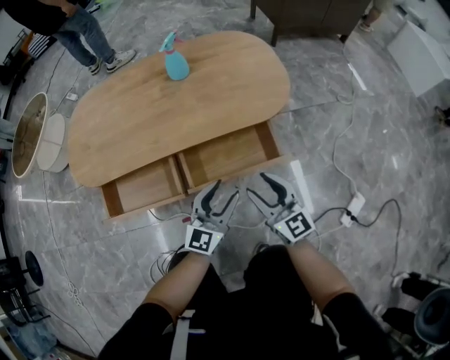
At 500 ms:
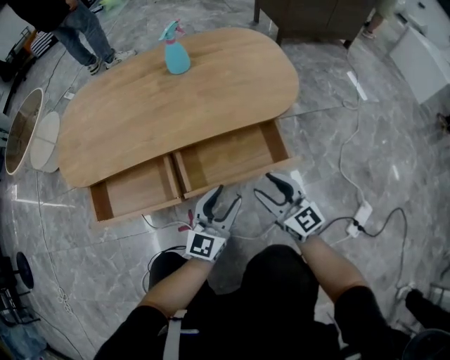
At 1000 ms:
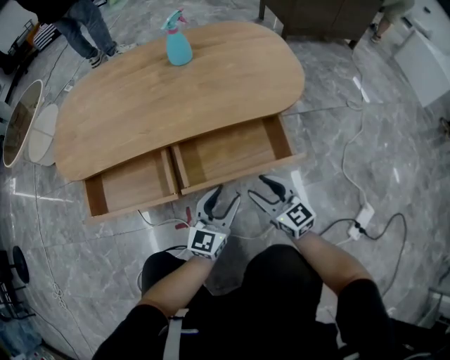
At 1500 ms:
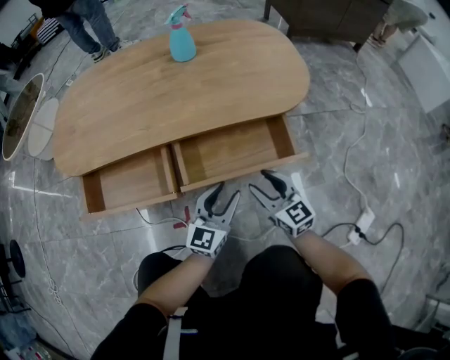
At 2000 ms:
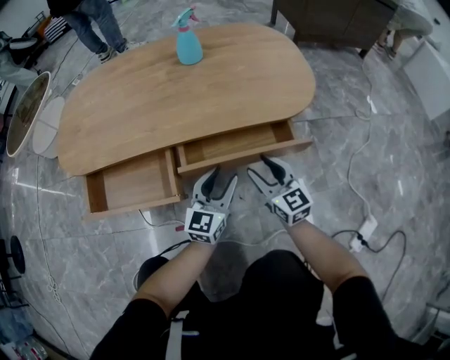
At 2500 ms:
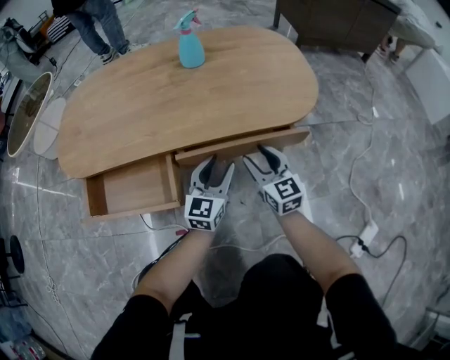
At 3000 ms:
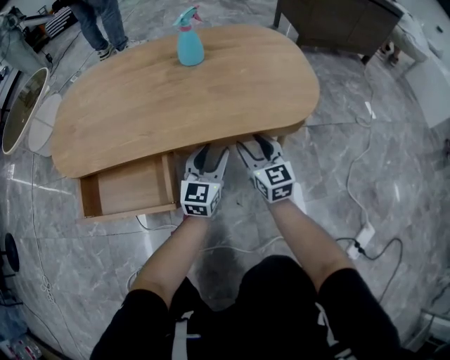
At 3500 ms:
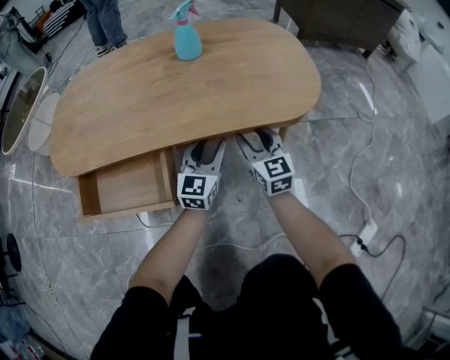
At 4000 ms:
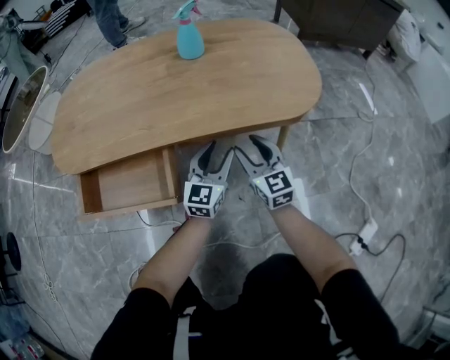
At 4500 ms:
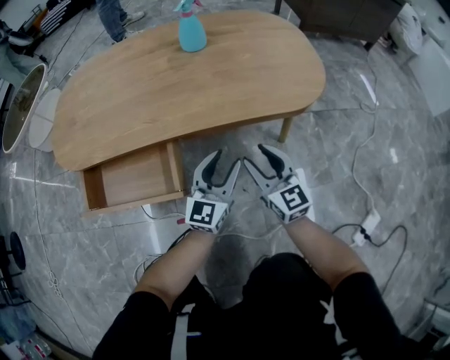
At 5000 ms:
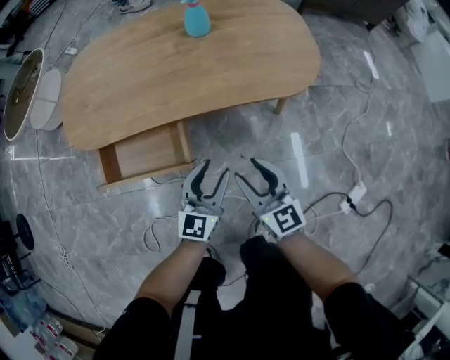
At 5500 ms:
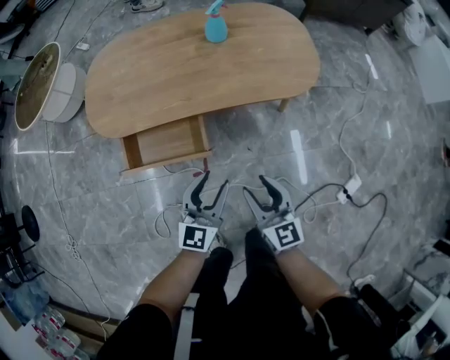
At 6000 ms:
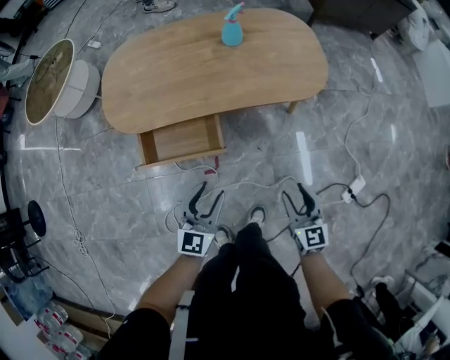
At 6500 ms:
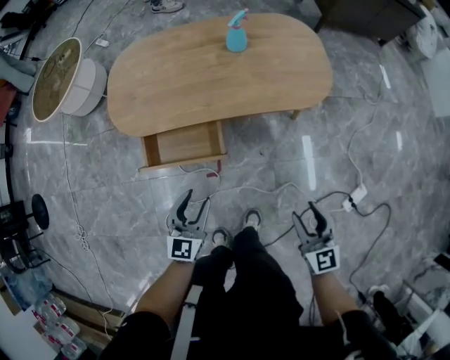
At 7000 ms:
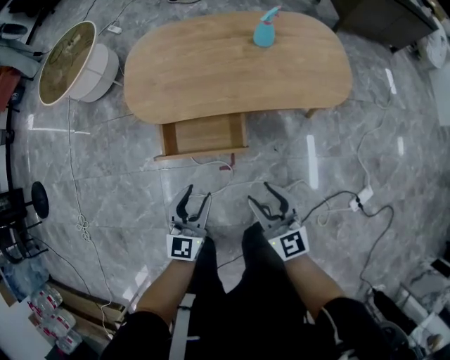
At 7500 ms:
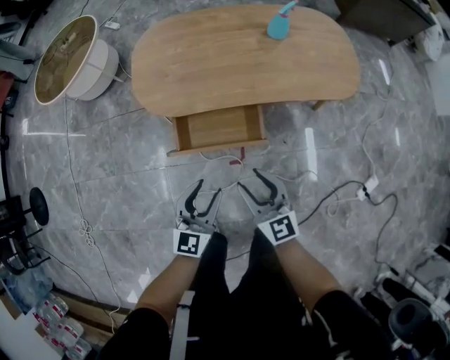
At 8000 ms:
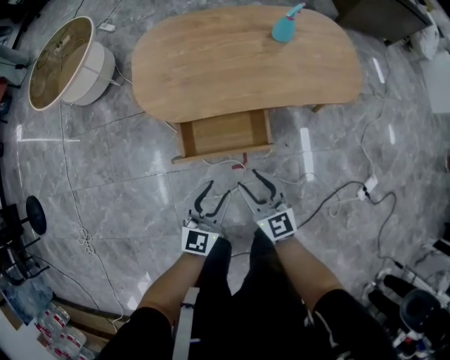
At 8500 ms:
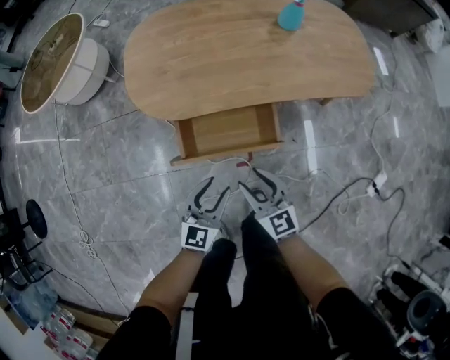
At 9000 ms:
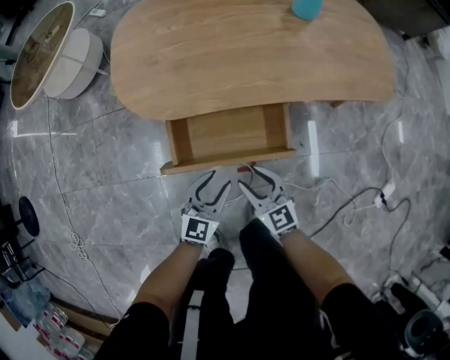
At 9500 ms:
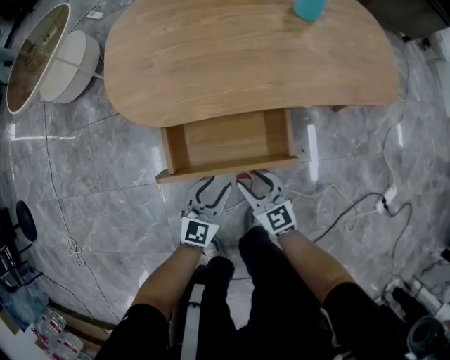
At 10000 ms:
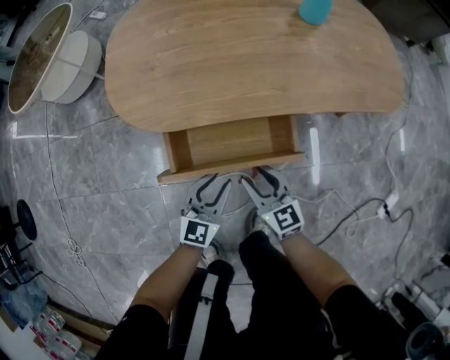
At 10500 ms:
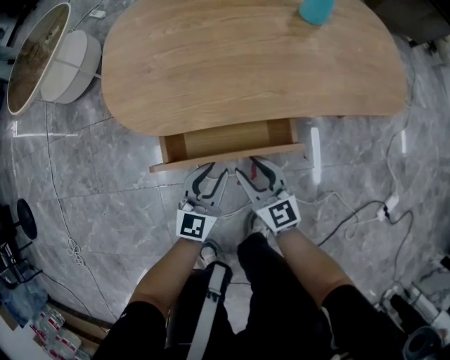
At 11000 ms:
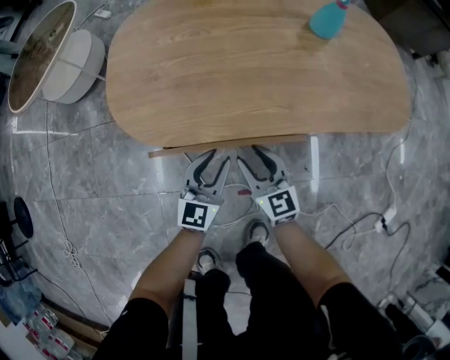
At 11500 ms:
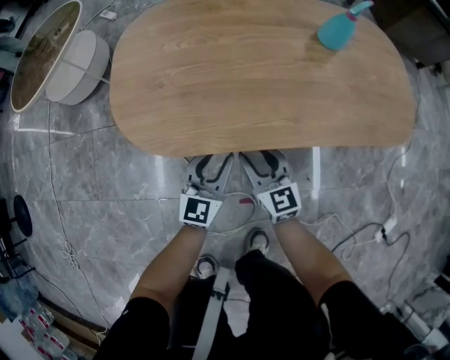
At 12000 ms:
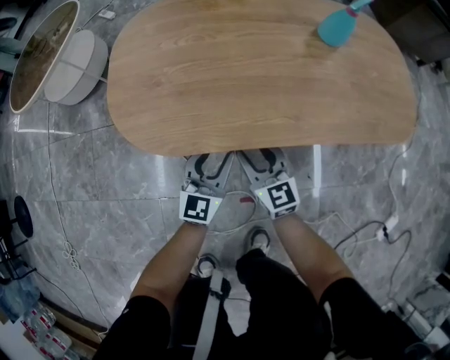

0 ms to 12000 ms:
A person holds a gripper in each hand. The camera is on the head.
0 ms to 2000 ms: The two grippers go some 15 cm downward and forward.
2000 ms to 4000 ms: The grippers both shift forward by about 10 cm.
4000 ms to 6000 ms: The right gripper heads backward and upward, covering approximately 35 cm, while the left gripper shifts some 40 cm backward, upward and to the left.
6000 ms to 8000 ms: The right gripper goes about 30 cm to the left. Meanwhile the left gripper goes some 15 cm to the left.
8000 ms to 10000 ms: The right gripper travels downward by approximately 20 cm. The left gripper travels downward and forward by some 20 cm.
10000 ms to 12000 ms: Both grippers move forward, approximately 15 cm.

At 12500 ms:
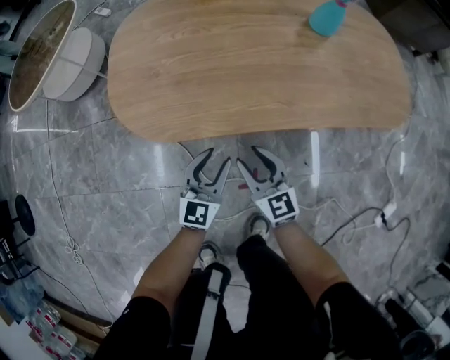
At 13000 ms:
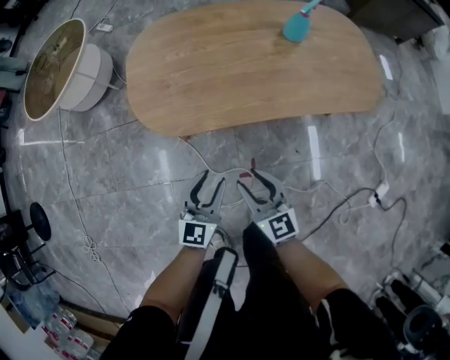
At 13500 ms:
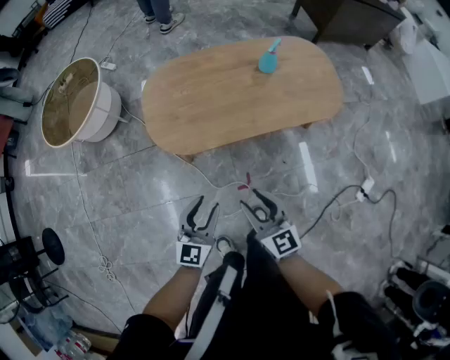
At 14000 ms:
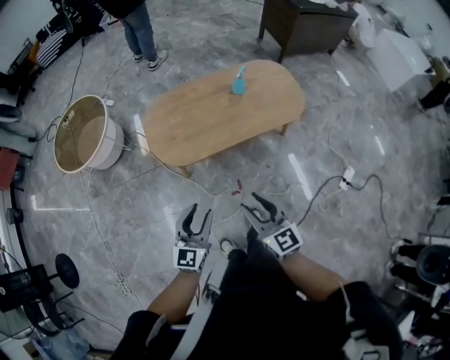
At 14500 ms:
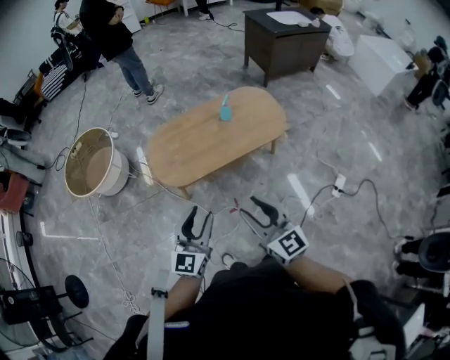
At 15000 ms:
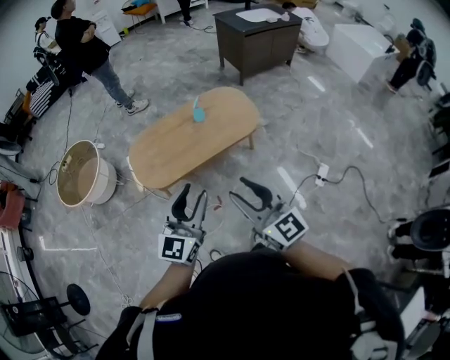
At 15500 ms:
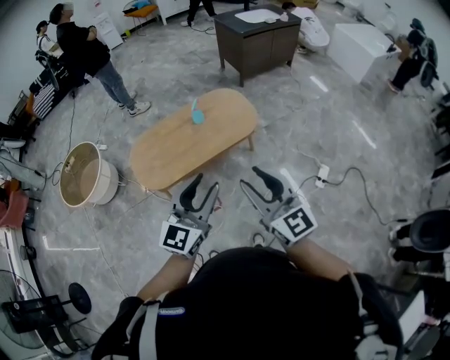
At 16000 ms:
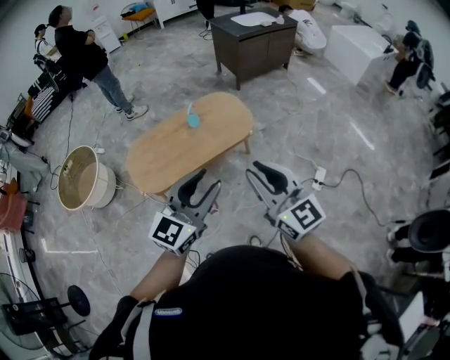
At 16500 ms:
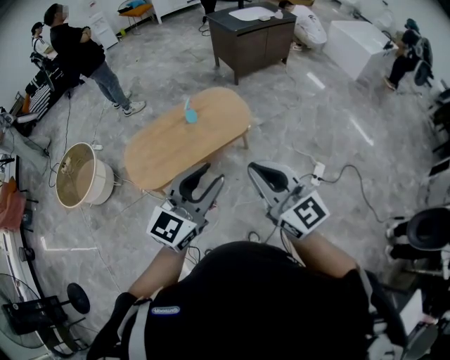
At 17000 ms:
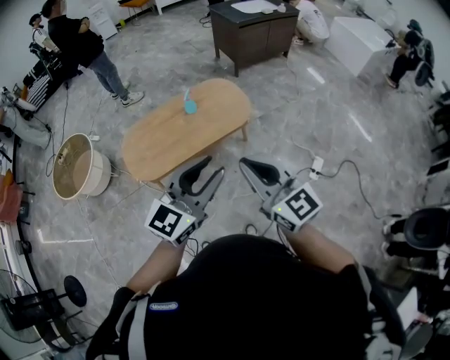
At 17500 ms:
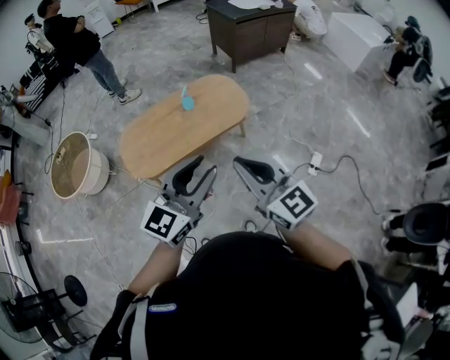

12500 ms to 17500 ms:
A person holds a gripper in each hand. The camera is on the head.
12500 ms to 15000 ms: The two grippers go some 70 cm upward. The right gripper turns by some 30 degrees. Meanwhile the left gripper swivels about 30 degrees.
15000 ms to 17500 ms: The right gripper heads to the right, covering roughly 5 cm, and closes up, while the left gripper moves to the right and upward, roughly 15 cm.

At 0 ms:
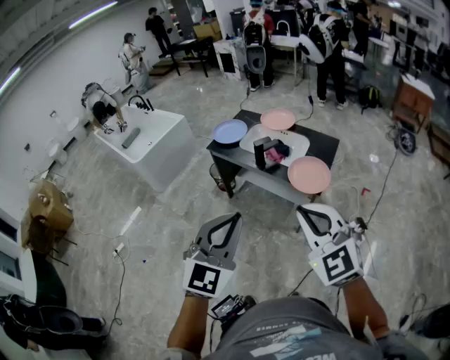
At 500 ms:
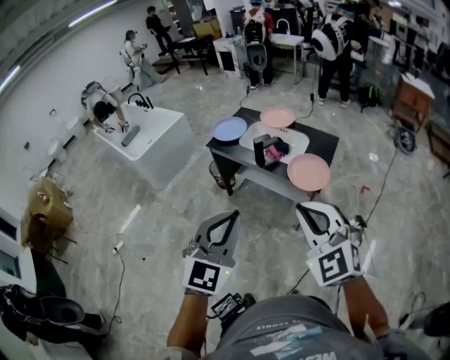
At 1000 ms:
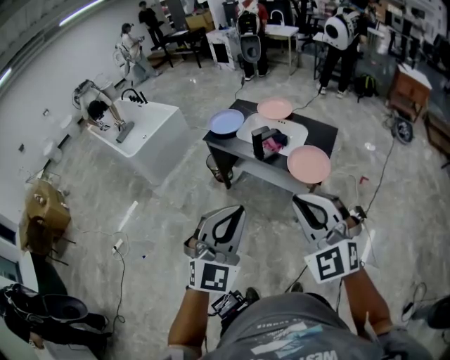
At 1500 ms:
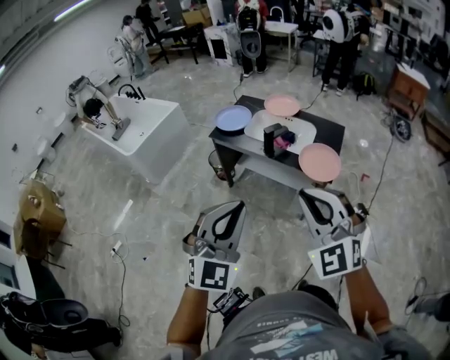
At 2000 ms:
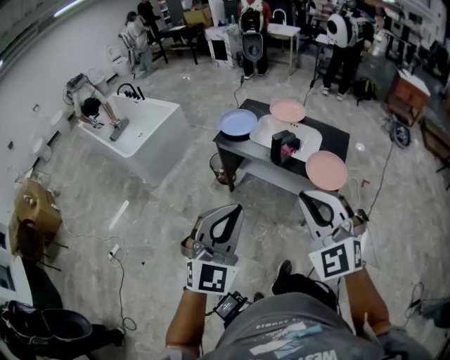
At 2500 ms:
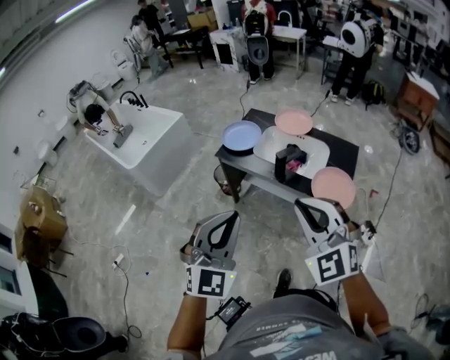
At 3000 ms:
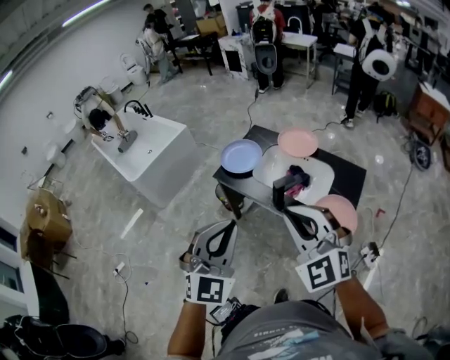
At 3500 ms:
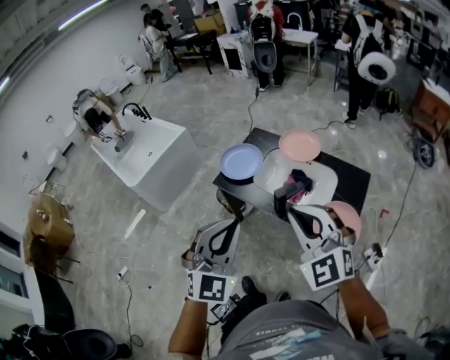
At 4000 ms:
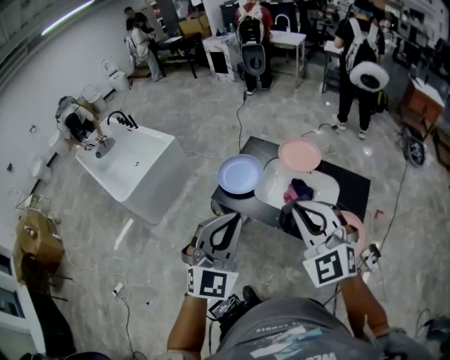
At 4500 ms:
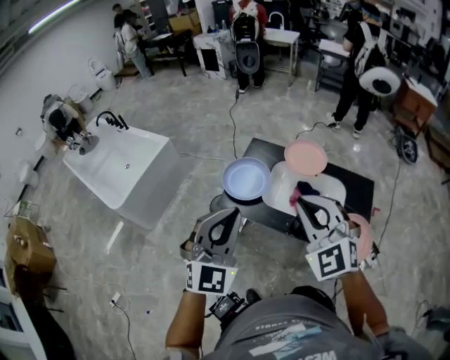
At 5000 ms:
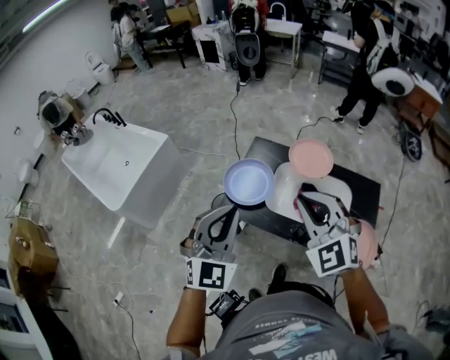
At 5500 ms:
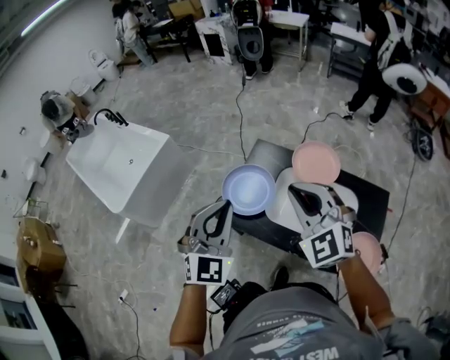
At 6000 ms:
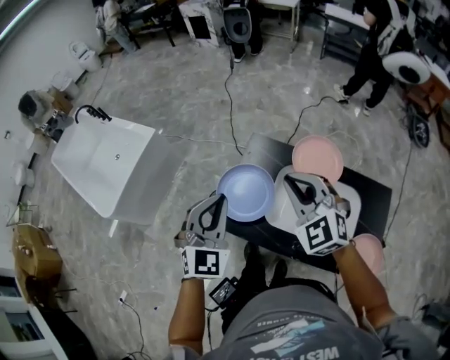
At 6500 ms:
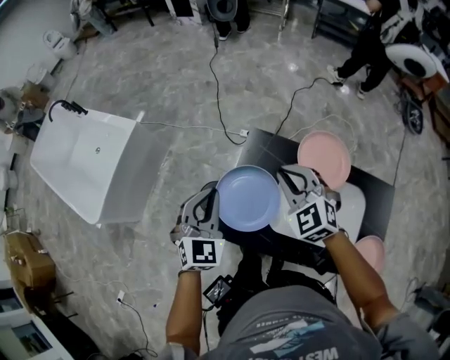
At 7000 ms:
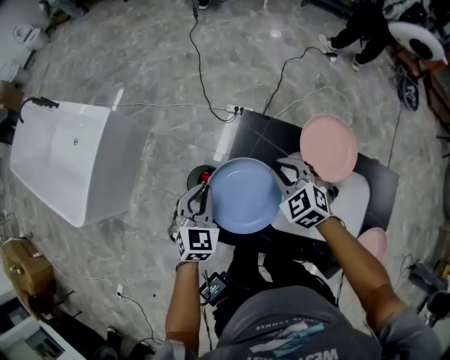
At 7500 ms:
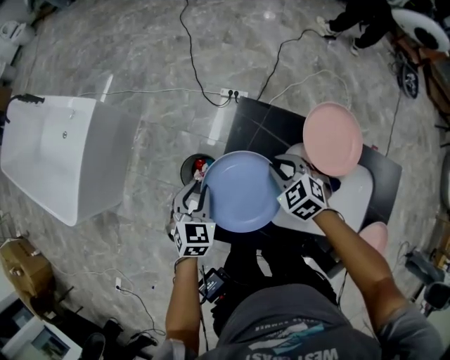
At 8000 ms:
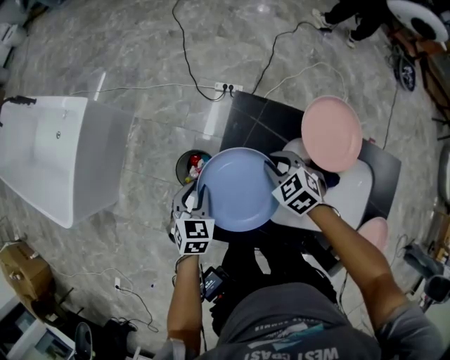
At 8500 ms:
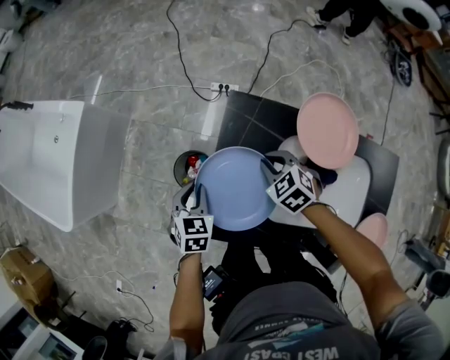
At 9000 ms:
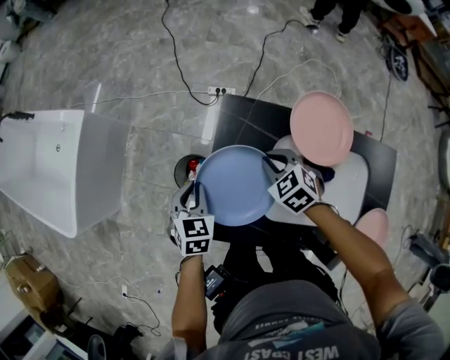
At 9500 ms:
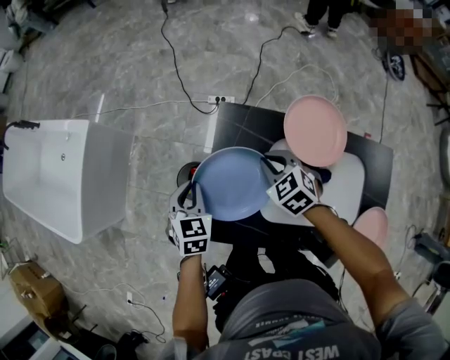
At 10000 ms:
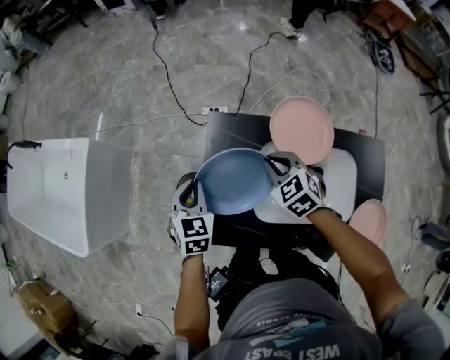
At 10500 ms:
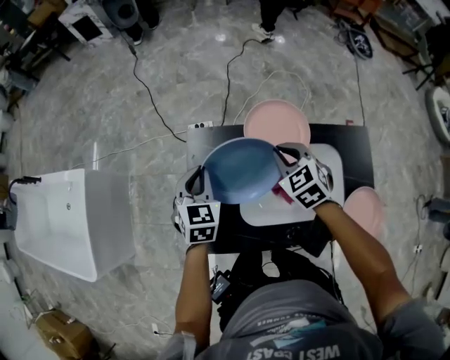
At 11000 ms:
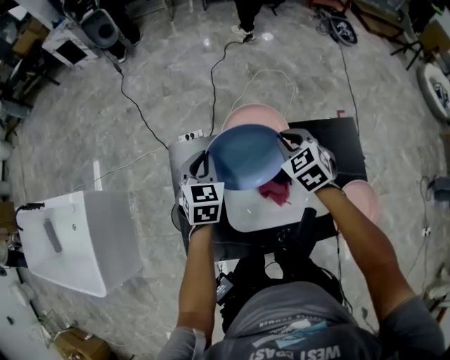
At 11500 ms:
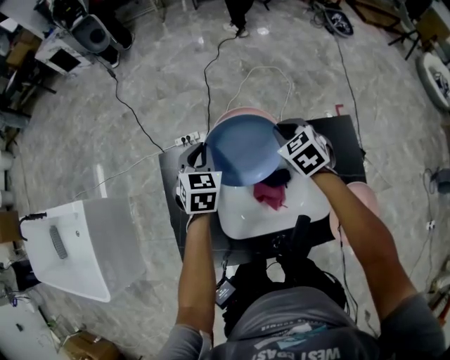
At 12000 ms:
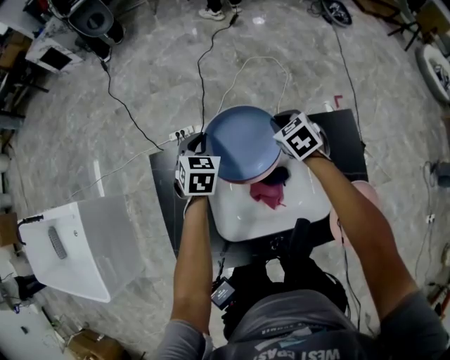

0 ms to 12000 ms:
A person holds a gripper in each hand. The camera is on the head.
0 ms to 2000 ms: Both grippers travel together to the left and forward, about 15 cm.
2000 ms to 4000 ms: Both grippers travel together forward, about 35 cm.
4000 ms to 6000 ms: The grippers both shift forward by roughly 30 cm.
6000 ms to 8000 ms: Both grippers move downward, approximately 35 cm. The right gripper points its fingers some 40 degrees further downward, while the left gripper tips its fingers downward by approximately 30 degrees, and opens.
8000 ms to 10000 ms: The two grippers go approximately 10 cm upward and to the right.
10000 ms to 12000 ms: Both grippers travel together to the right and forward, about 30 cm. The right gripper swivels some 30 degrees; the left gripper turns by roughly 20 degrees.
